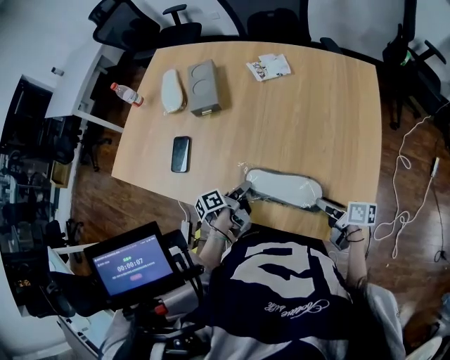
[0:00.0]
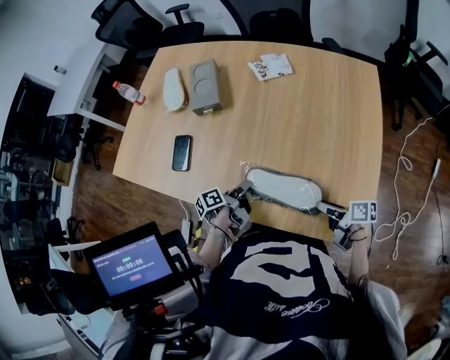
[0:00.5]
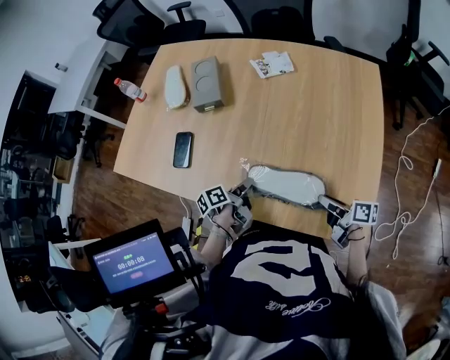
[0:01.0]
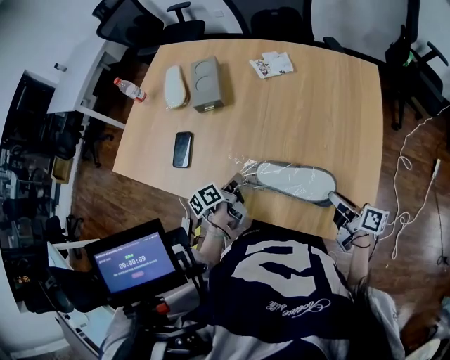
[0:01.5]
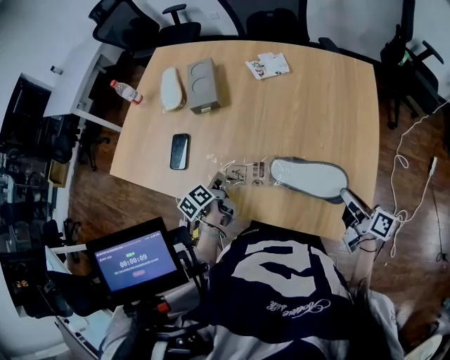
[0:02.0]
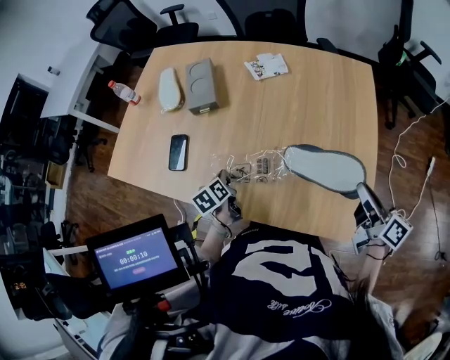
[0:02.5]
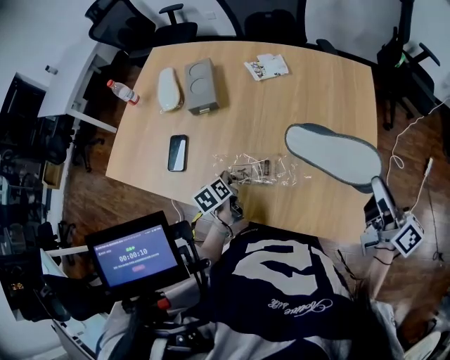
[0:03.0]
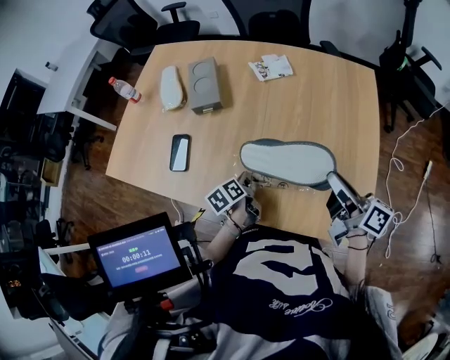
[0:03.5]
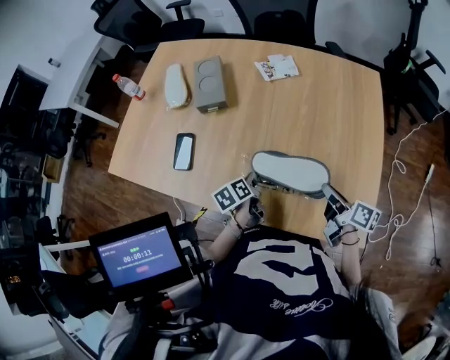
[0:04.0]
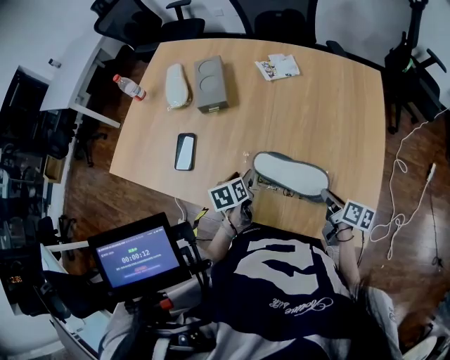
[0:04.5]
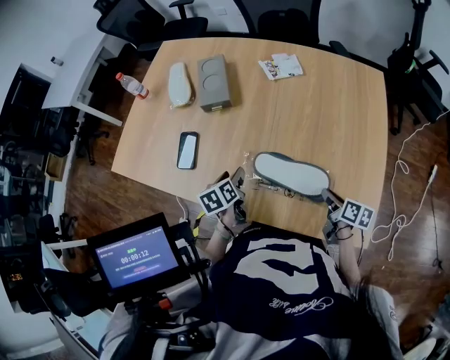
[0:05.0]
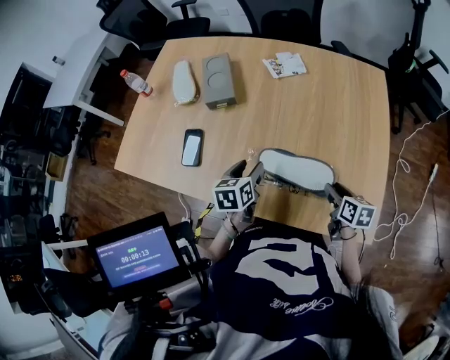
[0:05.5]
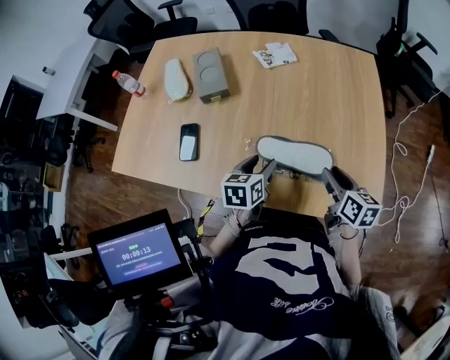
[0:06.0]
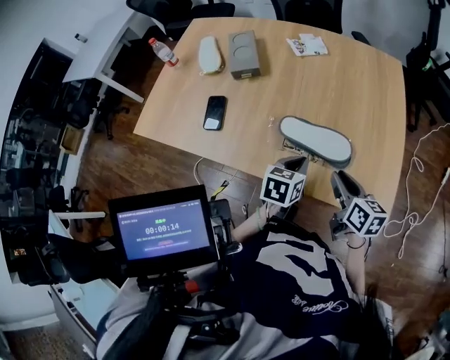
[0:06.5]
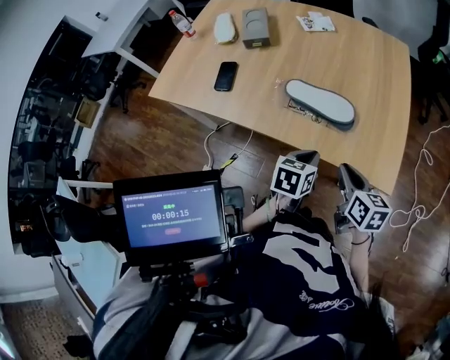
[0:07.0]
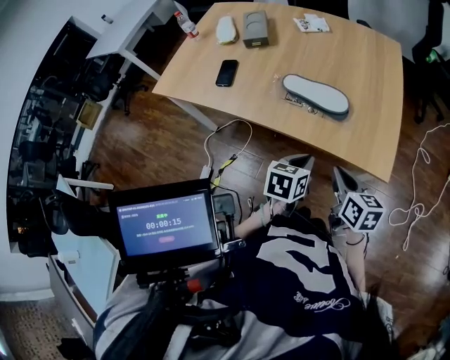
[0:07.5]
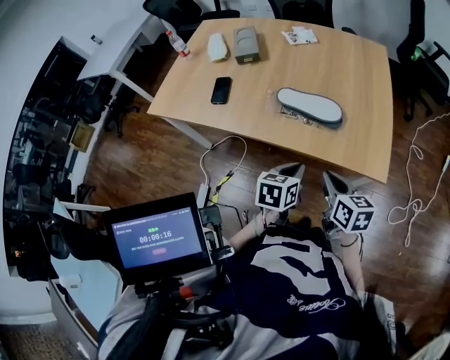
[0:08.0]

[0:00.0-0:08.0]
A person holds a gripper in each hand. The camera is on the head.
0:00.0 to 0:02.0: The right gripper moves upward and to the right, about 10 cm, turns by roughly 30 degrees, and closes up. Meanwhile the left gripper is displaced to the left by roughly 10 cm, and rotates about 30 degrees.
0:02.0 to 0:04.0: The right gripper goes some 10 cm to the left and forward, and reaches roughly 15 cm upward, then returns. The left gripper is displaced to the right by approximately 10 cm.
0:04.0 to 0:06.0: The right gripper travels downward and back again, roughly 10 cm each way, changes its angle by some 30 degrees, and opens its fingers. Meanwhile the left gripper moves upward, approximately 10 cm, reaches some 5 cm to the left, then returns, turns by about 40 degrees, and opens.
0:06.0 to 0:08.0: Both grippers travel together backward, some 25 cm. The left gripper closes up. The right gripper closes up.

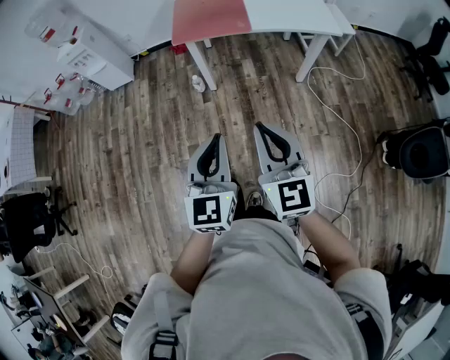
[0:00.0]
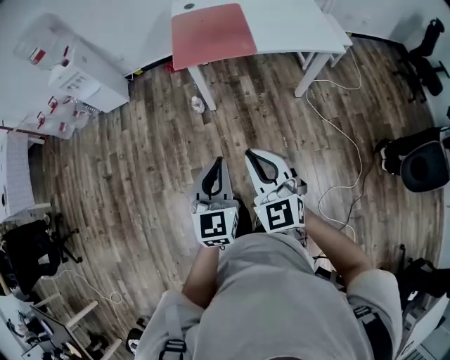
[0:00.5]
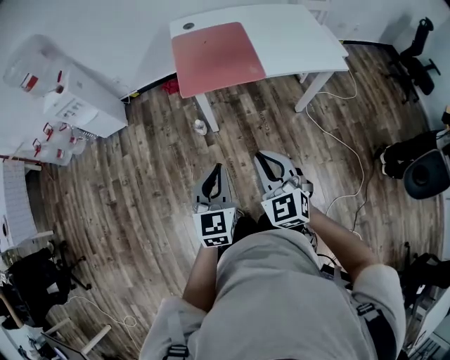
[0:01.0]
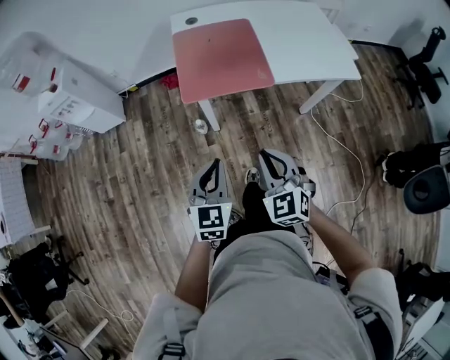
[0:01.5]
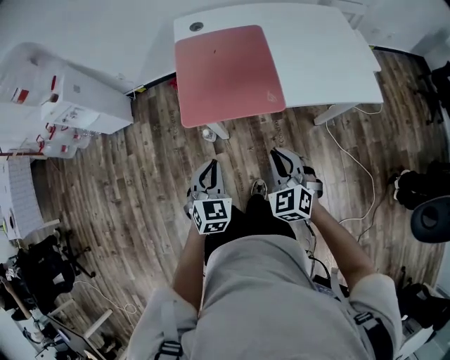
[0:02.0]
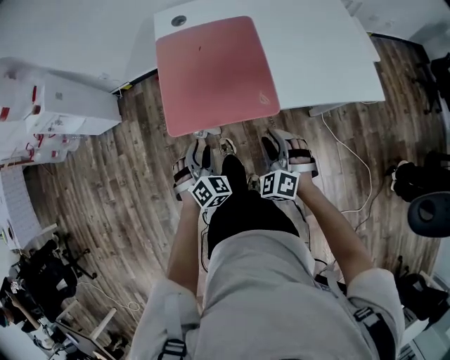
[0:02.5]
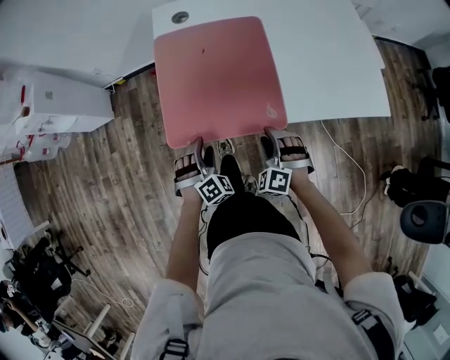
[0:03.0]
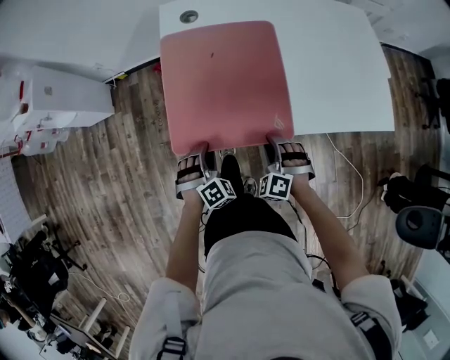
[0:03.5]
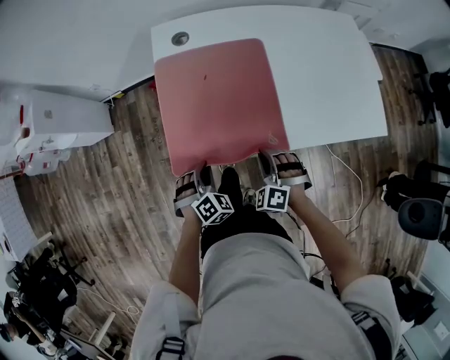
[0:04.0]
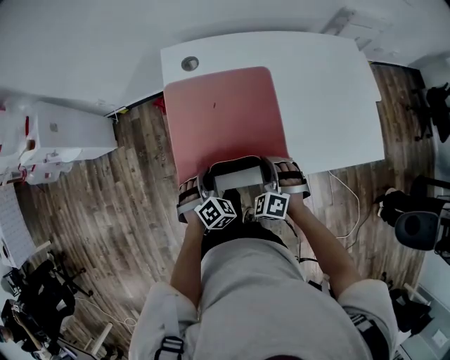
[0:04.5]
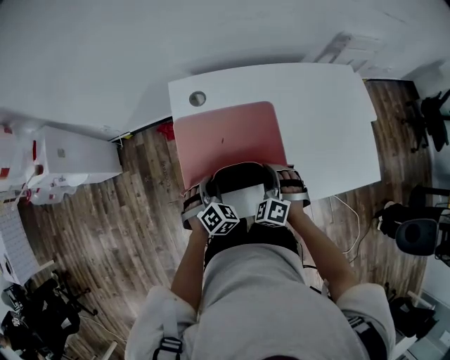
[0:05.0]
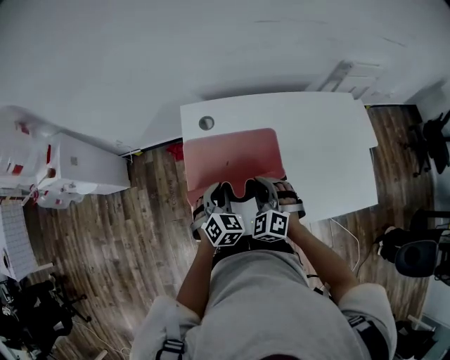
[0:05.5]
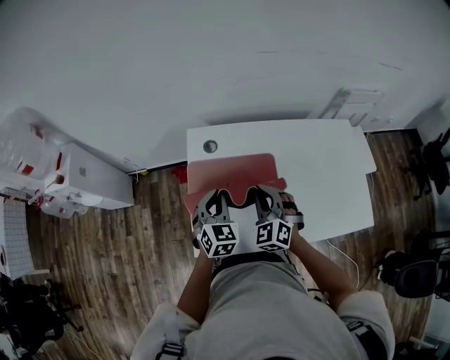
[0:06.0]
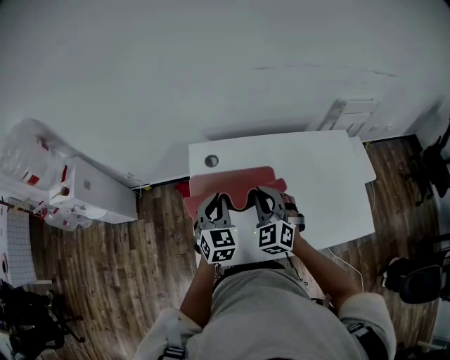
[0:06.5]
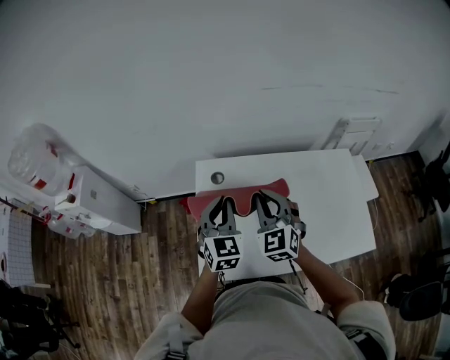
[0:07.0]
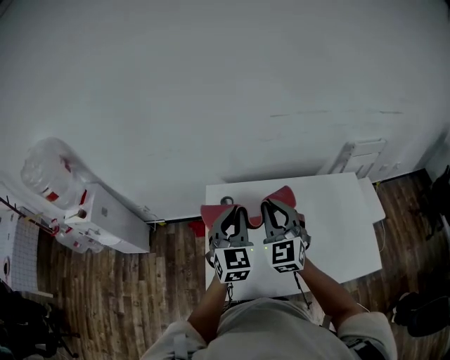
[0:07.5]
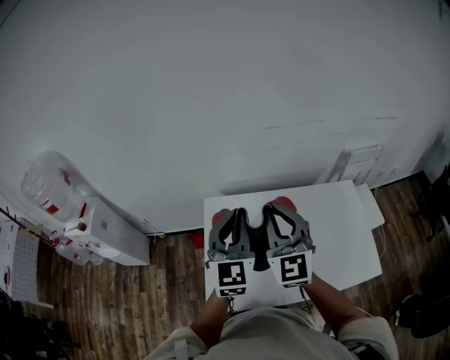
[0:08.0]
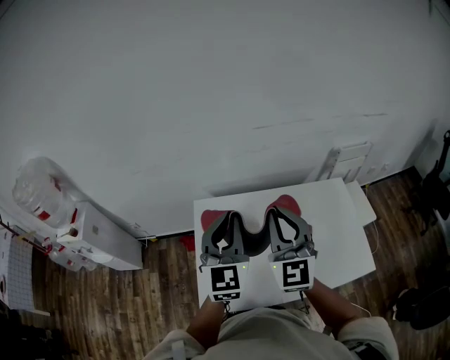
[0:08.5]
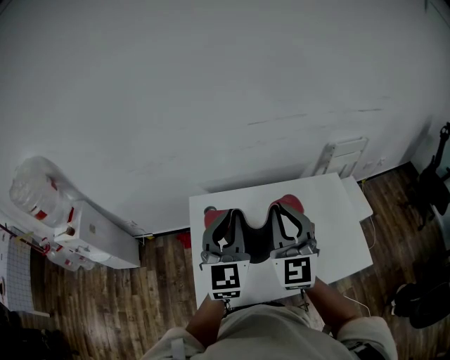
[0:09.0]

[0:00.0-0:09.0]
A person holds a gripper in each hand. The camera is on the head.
0:00.0 to 0:02.0: The two grippers travel together, forward, about 40 cm. Both grippers move downward, roughly 20 cm. The right gripper rotates roughly 40 degrees, while the left gripper changes its angle by roughly 30 degrees.
0:02.0 to 0:04.5: The left gripper is displaced forward and downward by roughly 25 cm, swivels roughly 40 degrees, and opens, then closes once more. Meanwhile the right gripper travels forward by approximately 25 cm, rotates roughly 30 degrees, and opens, then closes again.
0:04.5 to 0:07.0: Both grippers move upward and forward, some 35 cm. The right gripper swivels about 40 degrees. Meanwhile the left gripper angles its fingers upward, by about 40 degrees.
0:07.0 to 0:09.0: Both grippers move upward and to the right, roughly 15 cm. The left gripper changes its angle by some 20 degrees. The right gripper turns by approximately 20 degrees.

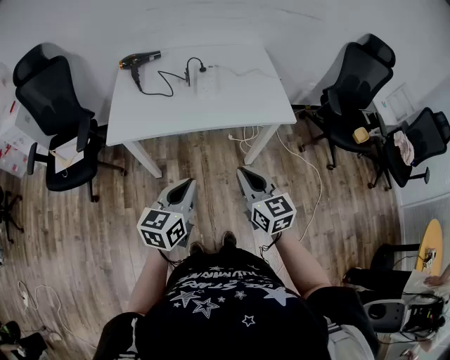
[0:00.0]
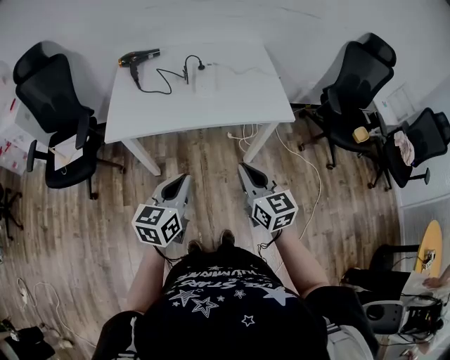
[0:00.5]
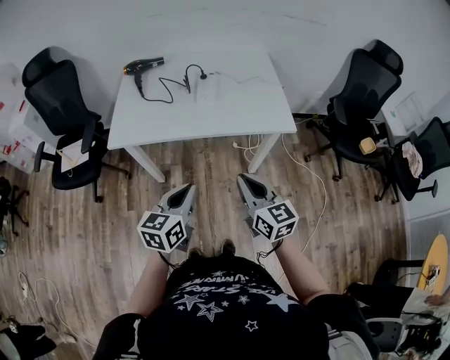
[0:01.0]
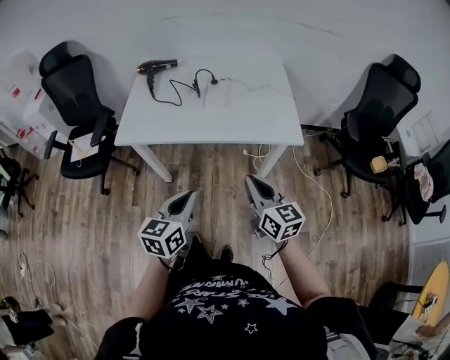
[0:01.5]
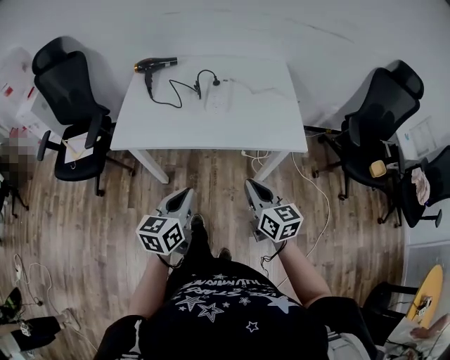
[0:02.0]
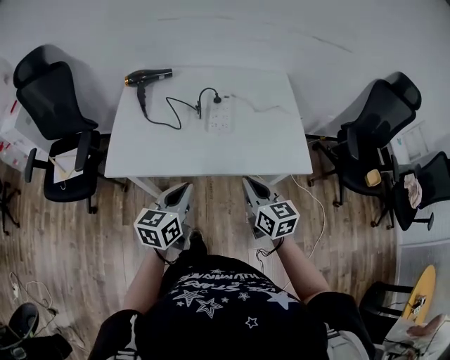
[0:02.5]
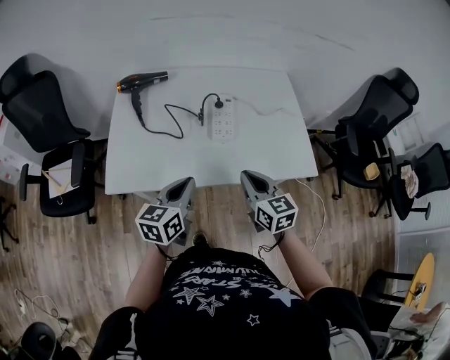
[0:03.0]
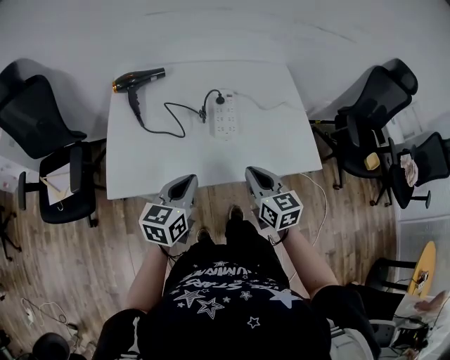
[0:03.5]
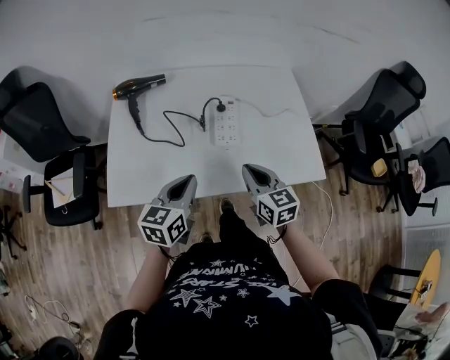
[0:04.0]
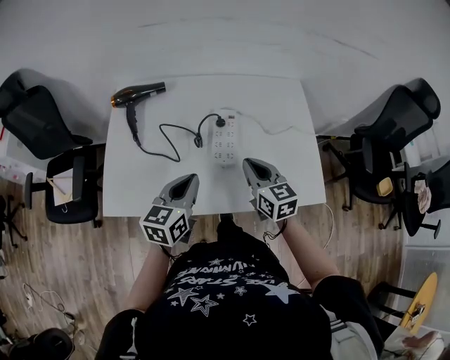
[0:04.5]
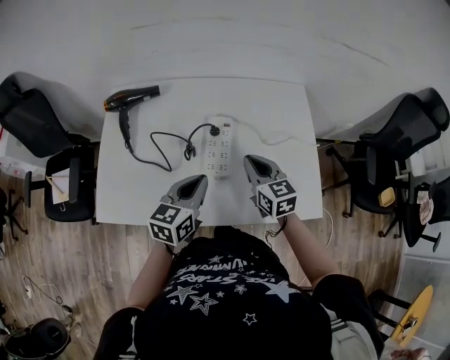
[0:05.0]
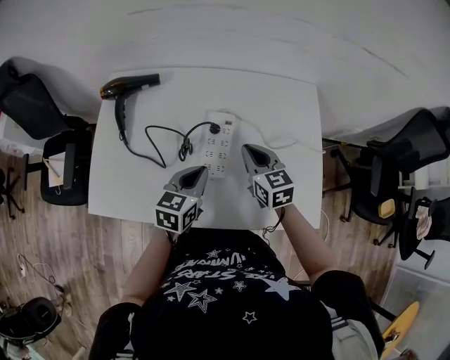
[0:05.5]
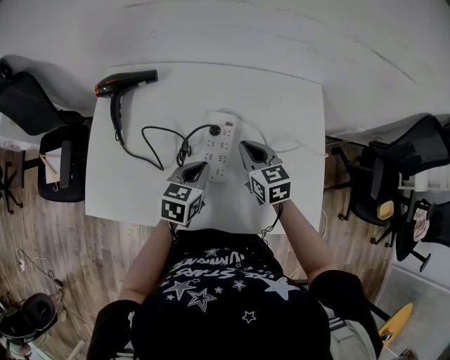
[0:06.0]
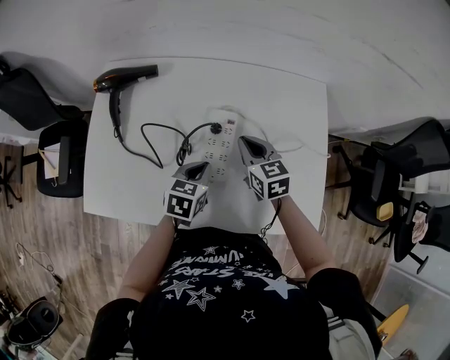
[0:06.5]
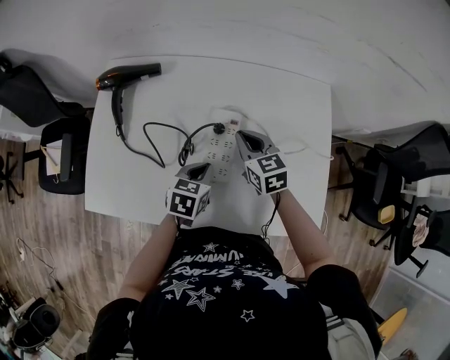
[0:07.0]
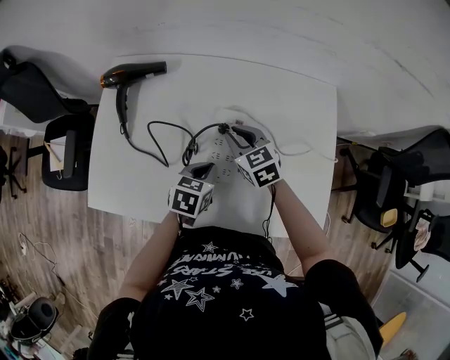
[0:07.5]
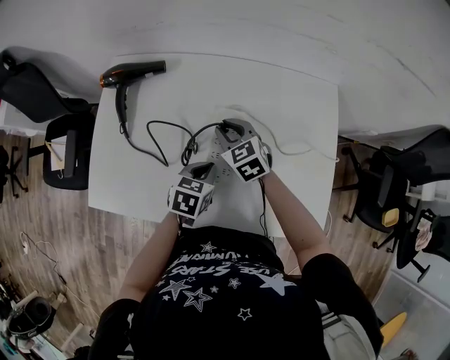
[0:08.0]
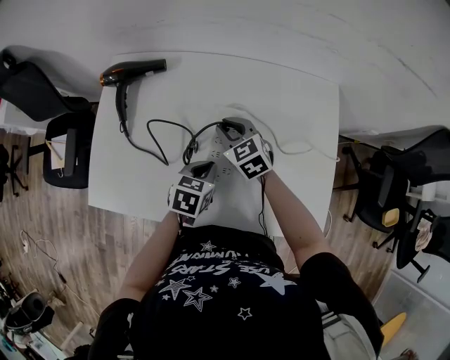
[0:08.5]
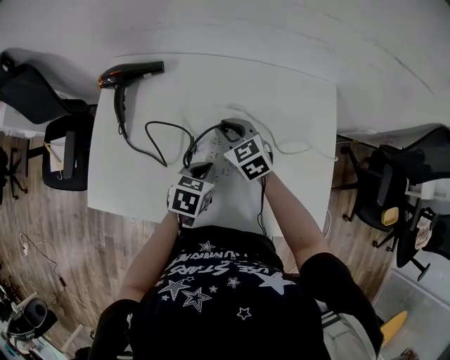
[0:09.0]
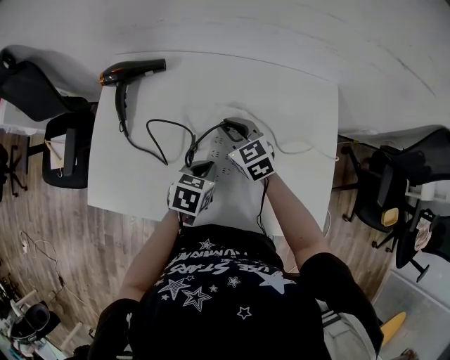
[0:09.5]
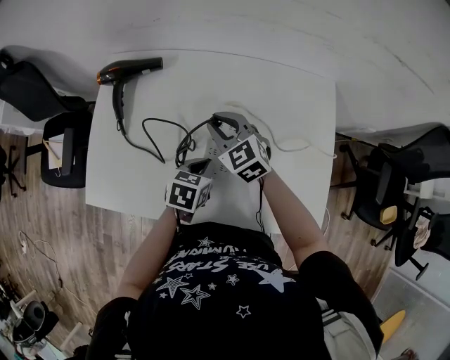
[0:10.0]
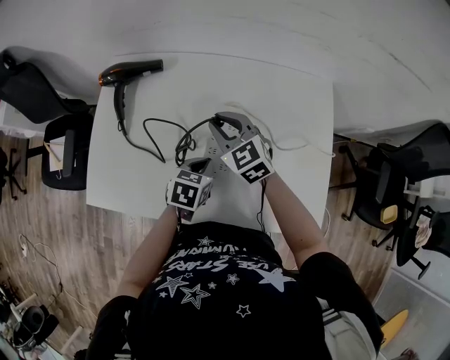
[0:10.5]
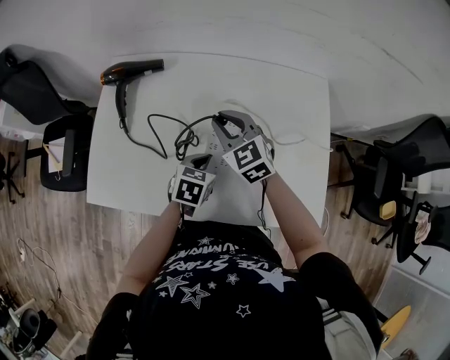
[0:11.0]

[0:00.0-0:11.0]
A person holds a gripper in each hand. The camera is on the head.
0:00.0 to 0:02.0: The right gripper shifts about 10 cm forward and to the right, while the left gripper goes some 5 cm forward.
0:02.0 to 0:03.5: The two grippers go roughly 25 cm forward and to the left.
0:03.5 to 0:05.5: The right gripper heads forward, covering approximately 25 cm. Meanwhile the left gripper moves forward and to the right, roughly 25 cm.
0:05.5 to 0:07.5: The right gripper heads to the left and forward, covering approximately 10 cm. Meanwhile the left gripper moves downward, some 10 cm.
0:07.5 to 0:09.0: The grippers make only small movements.
0:09.0 to 0:11.0: The right gripper moves upward, about 10 cm.
